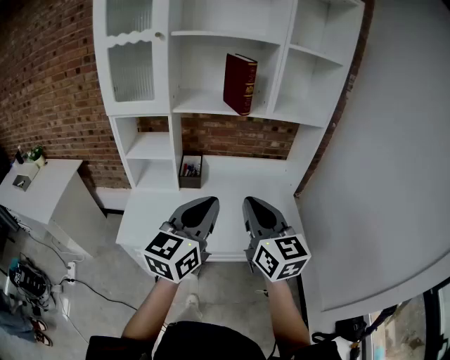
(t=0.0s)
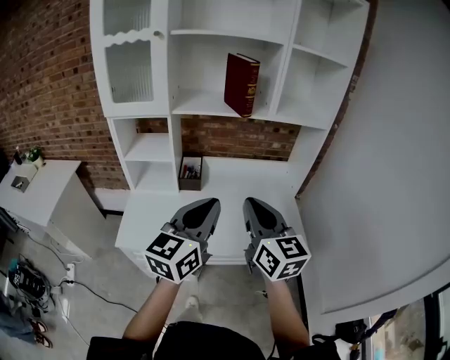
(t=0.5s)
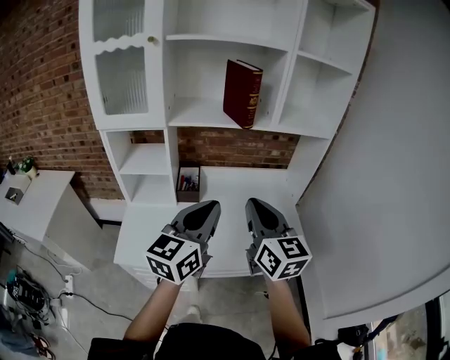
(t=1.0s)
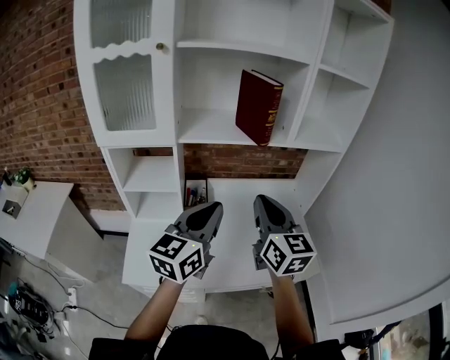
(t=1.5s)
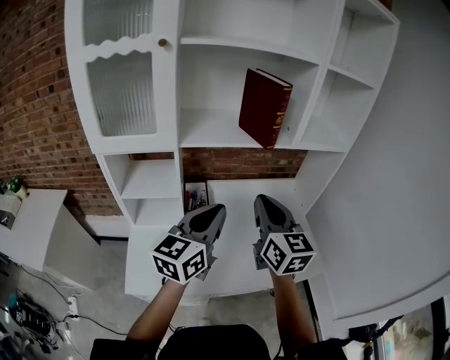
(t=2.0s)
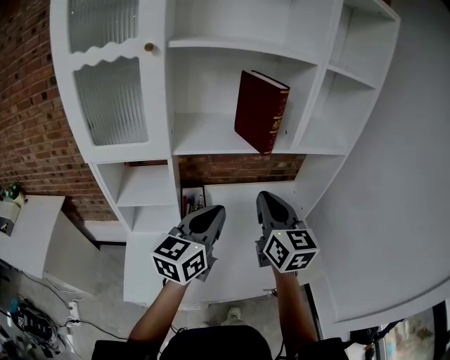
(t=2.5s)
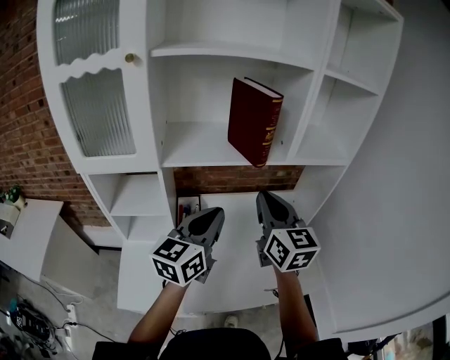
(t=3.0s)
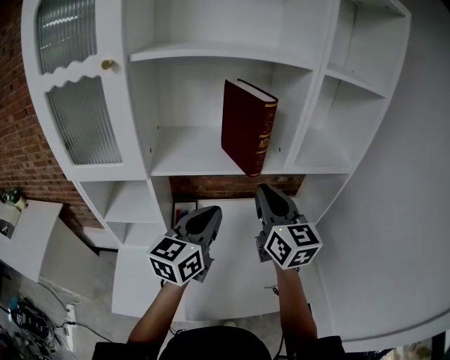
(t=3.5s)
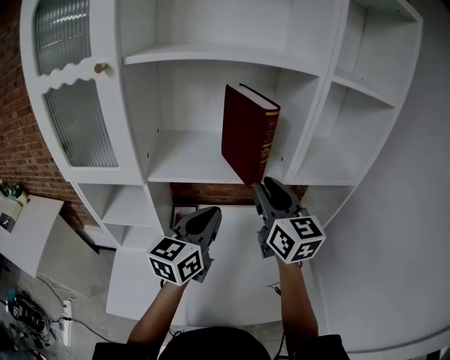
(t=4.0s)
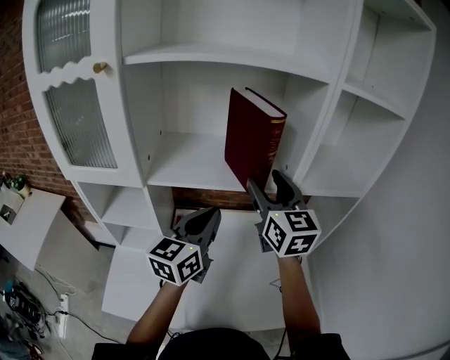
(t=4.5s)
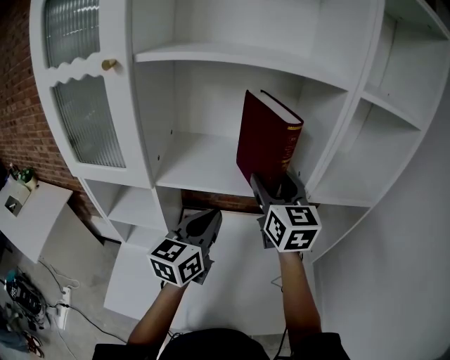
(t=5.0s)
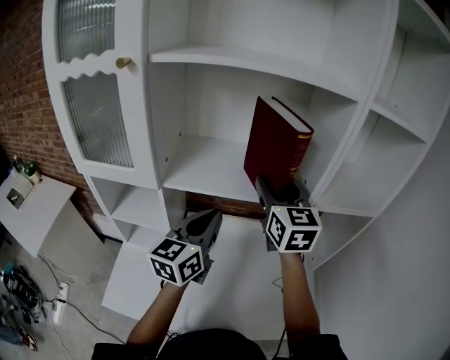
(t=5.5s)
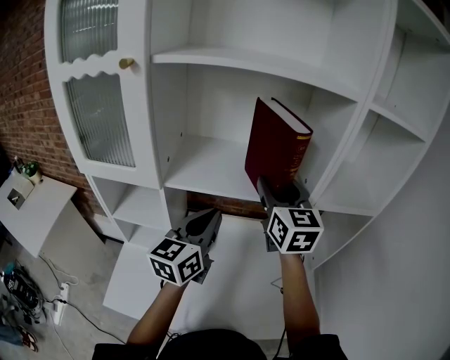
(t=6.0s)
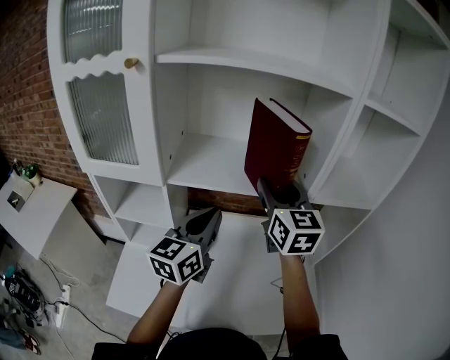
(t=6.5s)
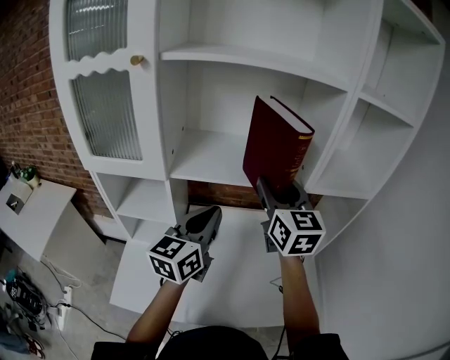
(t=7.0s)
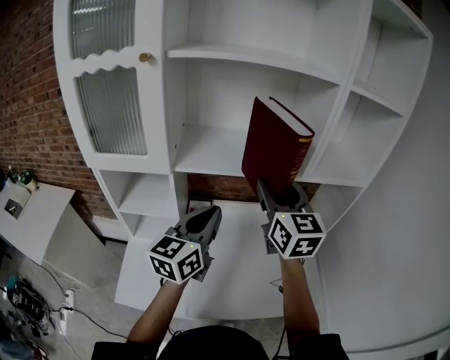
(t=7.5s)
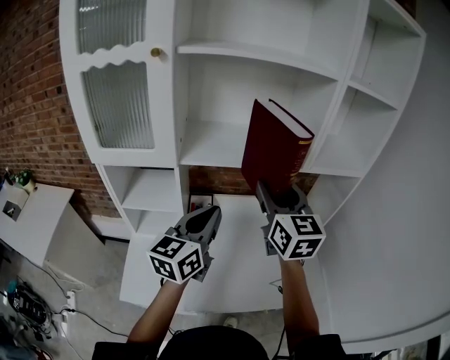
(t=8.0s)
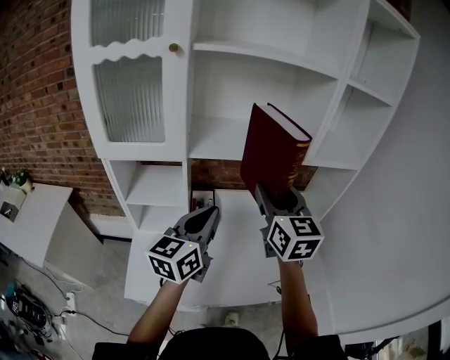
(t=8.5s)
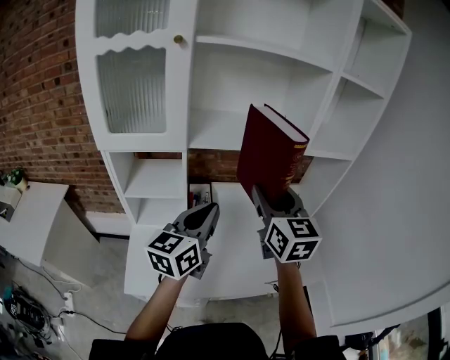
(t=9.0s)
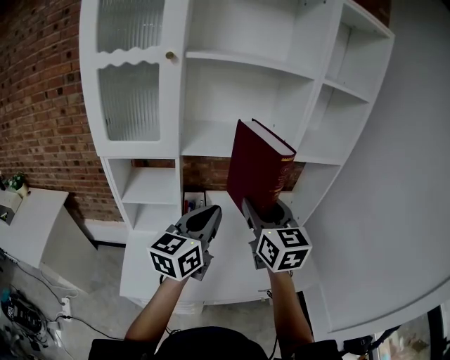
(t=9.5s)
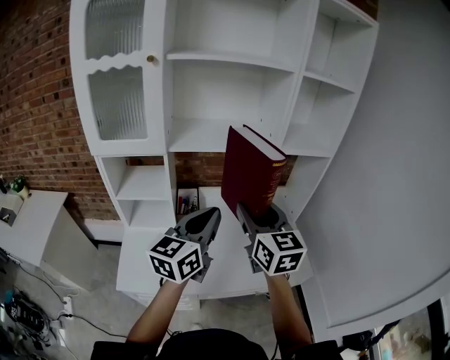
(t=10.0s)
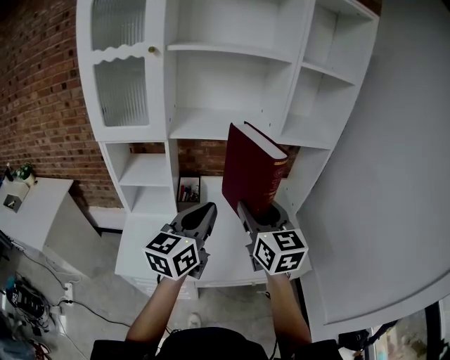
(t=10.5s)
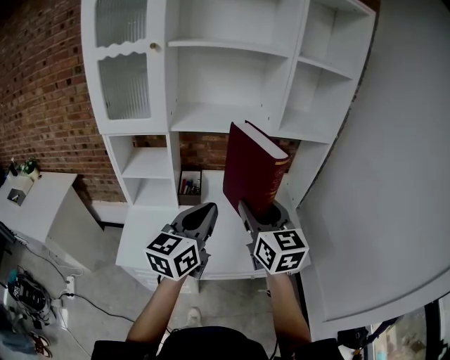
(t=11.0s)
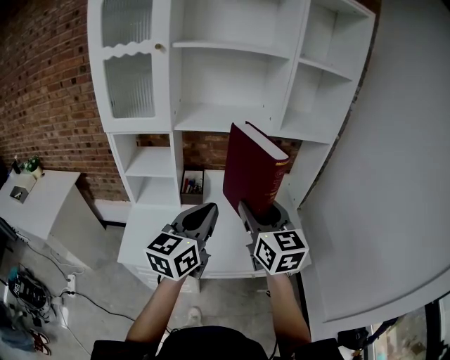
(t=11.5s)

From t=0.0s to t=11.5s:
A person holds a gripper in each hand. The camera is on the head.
From t=0.0s to t=2.0s: The two grippers go about 20 cm forward and to the left.
From t=2.0s to t=4.0s: Both grippers move forward, some 15 cm.
From t=4.0s to t=6.0s: The right gripper is displaced forward by about 5 cm, and opens, while the left gripper ends up about 5 cm from where it was.
From t=6.0s to t=7.5s: The two grippers go some 10 cm backward.
From t=7.5s to t=9.5s: The grippers both shift backward by about 15 cm.
From t=9.5s to t=11.5s: Both grippers travel together backward and to the right, about 15 cm.

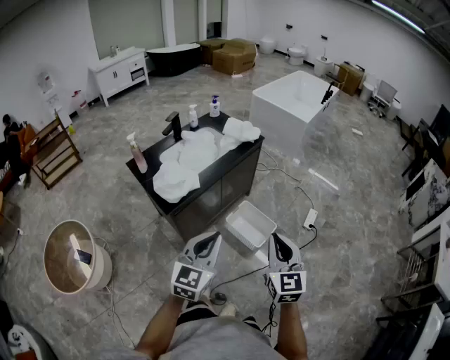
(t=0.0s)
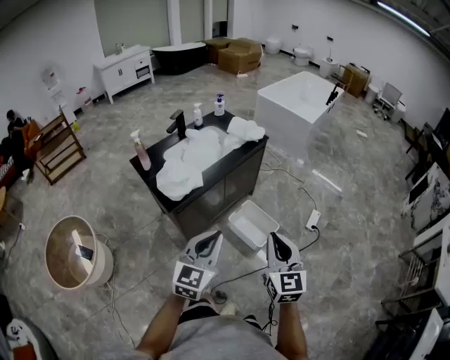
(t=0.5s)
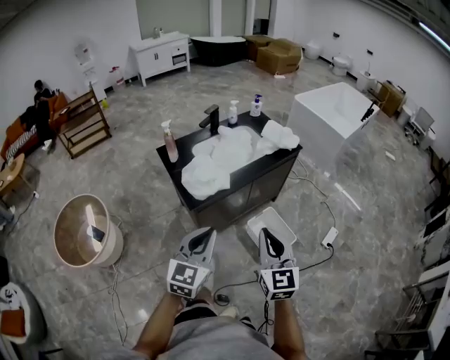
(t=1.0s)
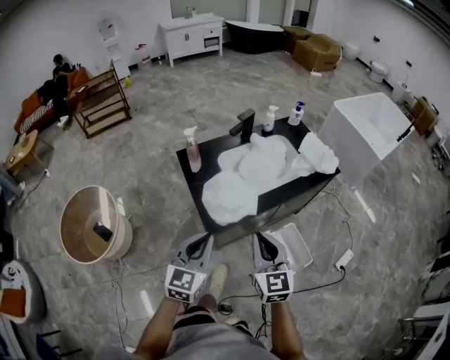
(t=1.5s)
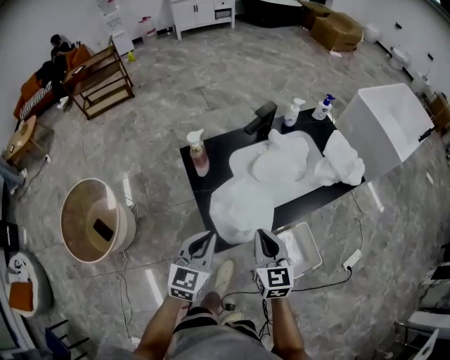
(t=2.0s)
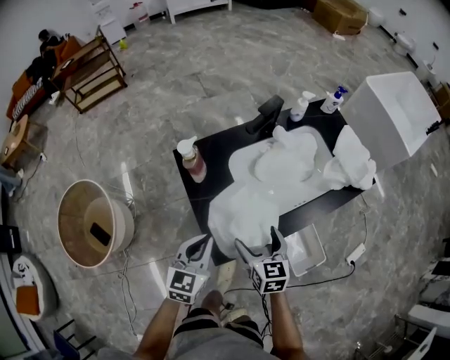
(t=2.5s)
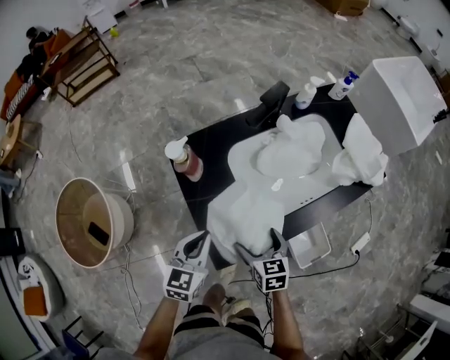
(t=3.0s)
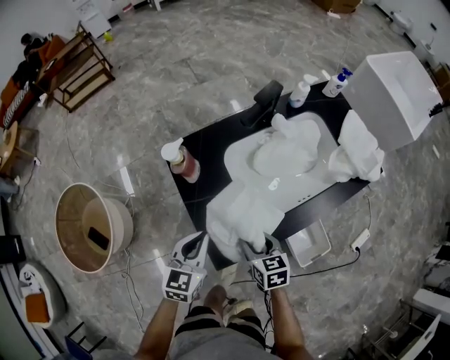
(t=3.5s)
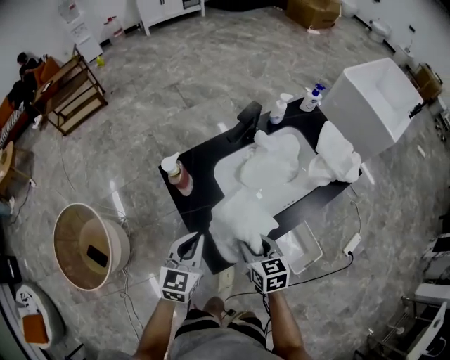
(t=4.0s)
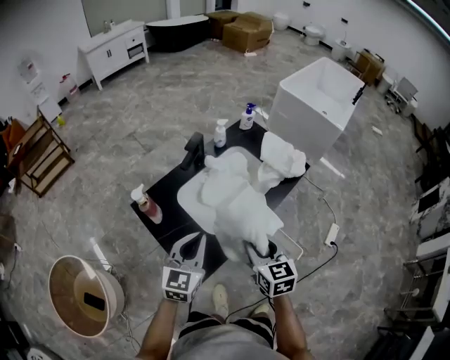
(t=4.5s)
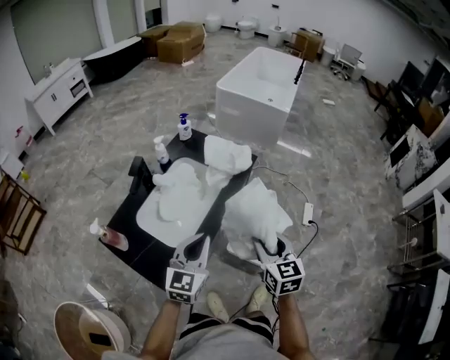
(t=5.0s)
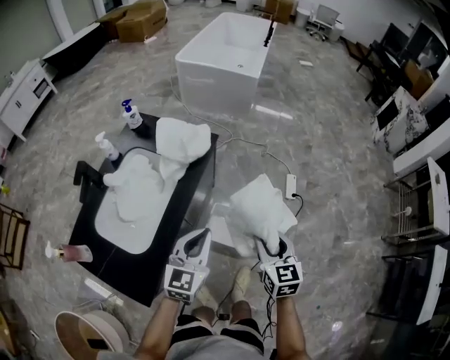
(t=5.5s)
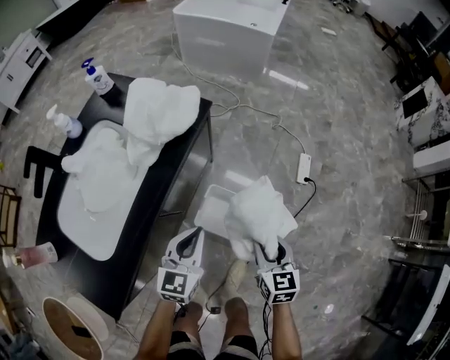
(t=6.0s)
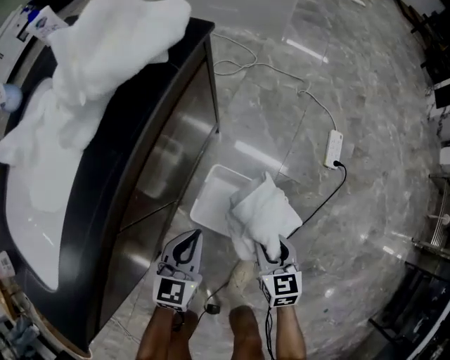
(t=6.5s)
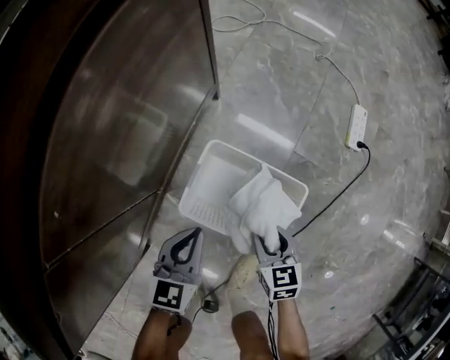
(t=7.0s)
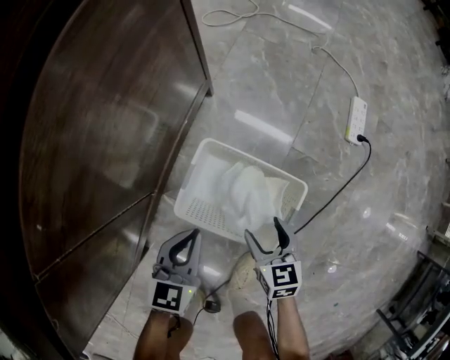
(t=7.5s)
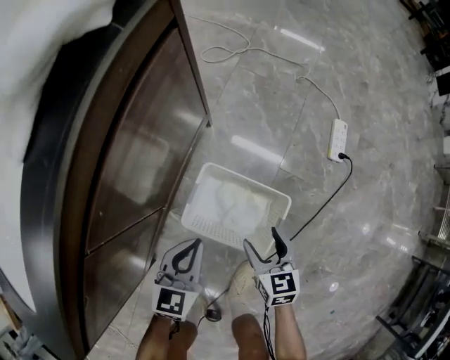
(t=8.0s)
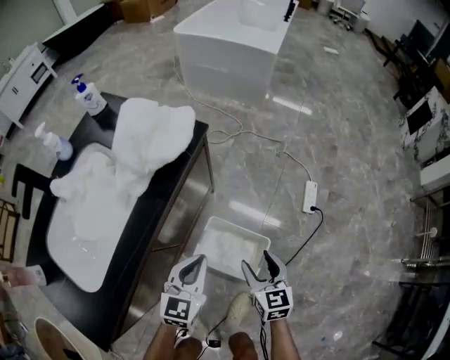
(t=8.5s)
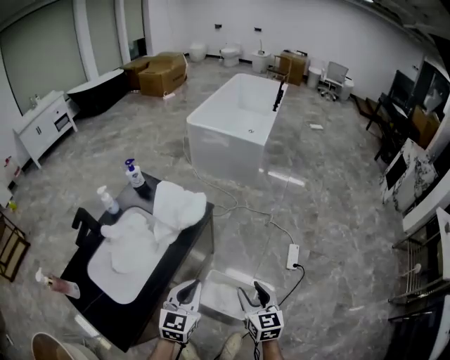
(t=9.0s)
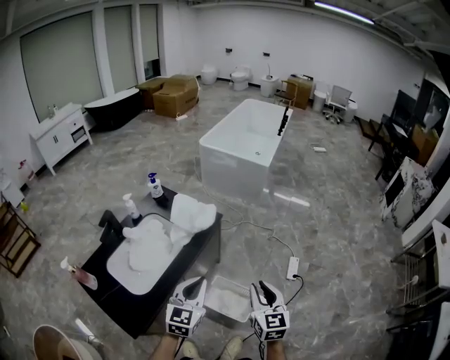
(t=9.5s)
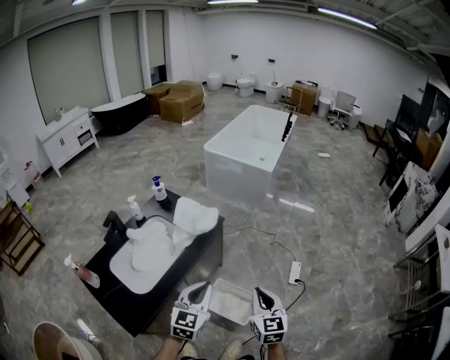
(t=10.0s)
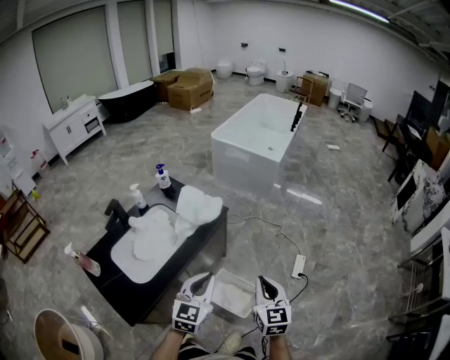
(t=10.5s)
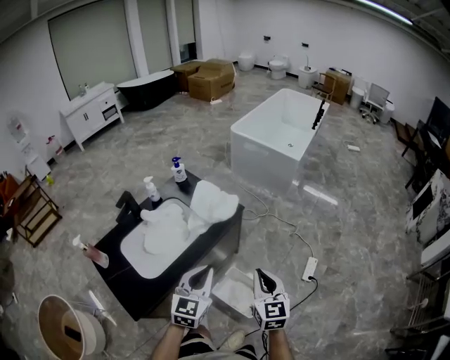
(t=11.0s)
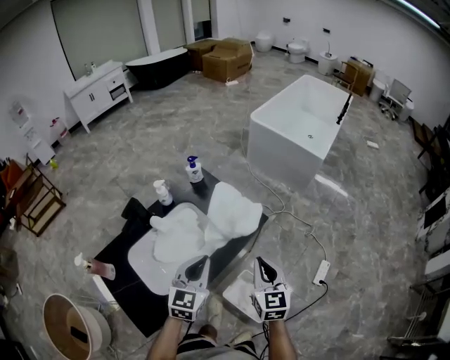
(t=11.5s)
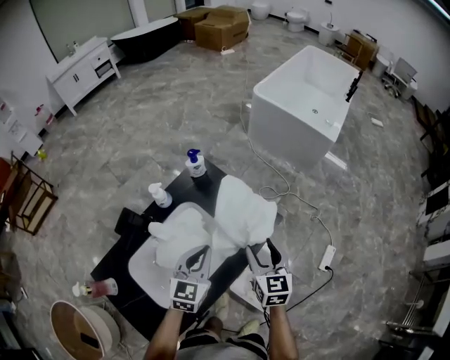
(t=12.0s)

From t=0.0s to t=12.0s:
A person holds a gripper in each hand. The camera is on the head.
From t=0.0s to t=2.0s: The pair of grippers is taken roughly 50 cm. The left gripper turns by some 30 degrees. Meanwhile the right gripper rotates approximately 30 degrees.
From t=2.0s to t=4.0s: The right gripper is displaced downward and forward by some 10 cm, turns by some 20 degrees, and opens, then closes once more, while the left gripper travels forward by some 10 cm.
From t=4.0s to t=6.0s: The two grippers travel together, some 50 cm. The right gripper swivels some 50 degrees; the left gripper changes its angle by some 40 degrees.
From t=6.0s to t=8.0s: The grippers both shift downward by about 35 cm.
From t=8.0s to t=10.0s: Both grippers travel together upward, approximately 70 cm. The left gripper turns by about 30 degrees. Meanwhile the right gripper rotates about 30 degrees, and closes its fingers.
From t=10.0s to t=12.0s: The two grippers go approximately 40 cm forward and to the left. The right gripper opens its fingers.

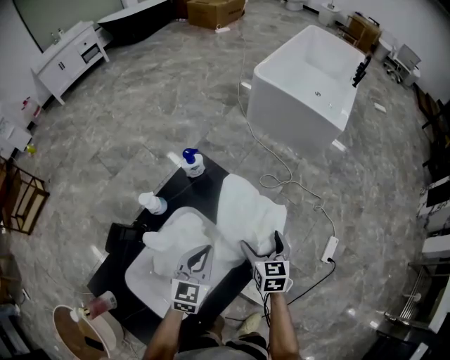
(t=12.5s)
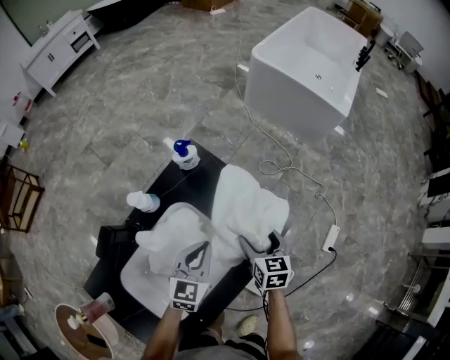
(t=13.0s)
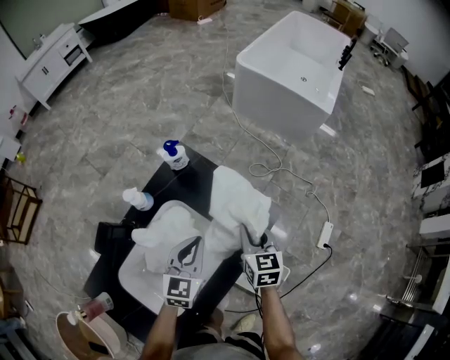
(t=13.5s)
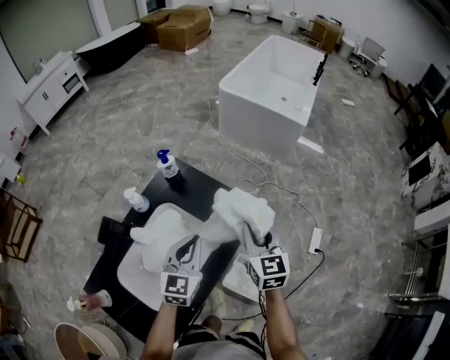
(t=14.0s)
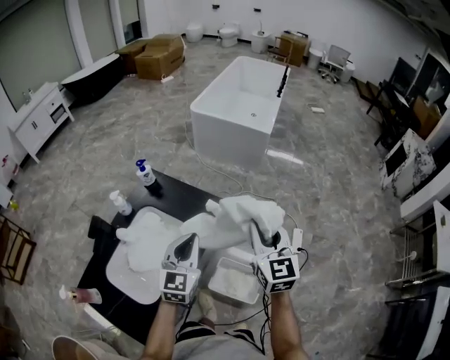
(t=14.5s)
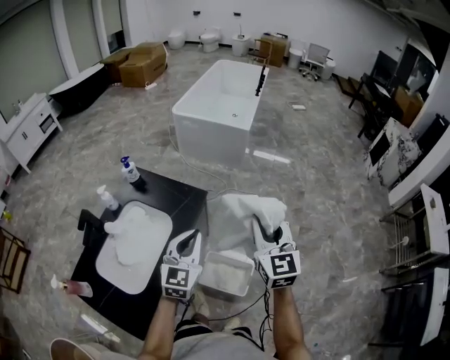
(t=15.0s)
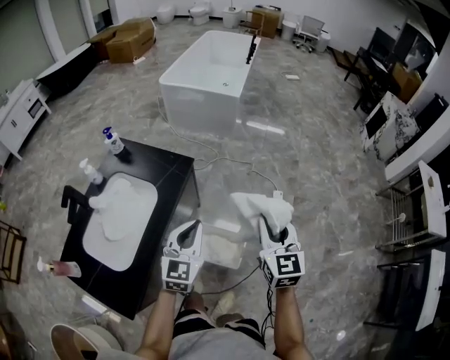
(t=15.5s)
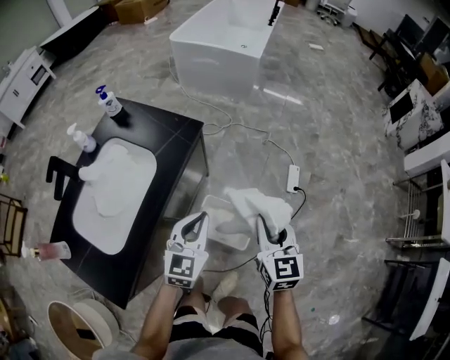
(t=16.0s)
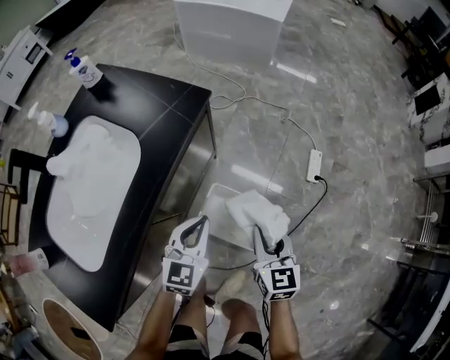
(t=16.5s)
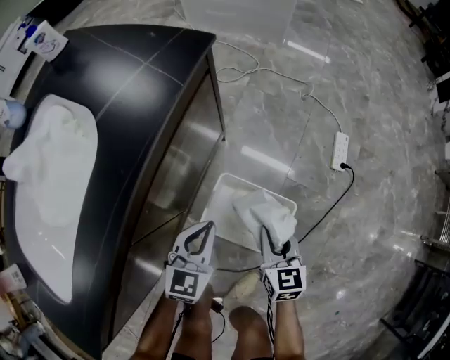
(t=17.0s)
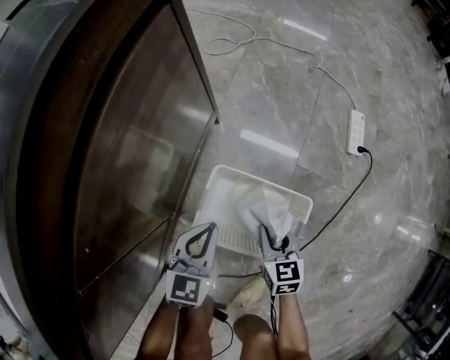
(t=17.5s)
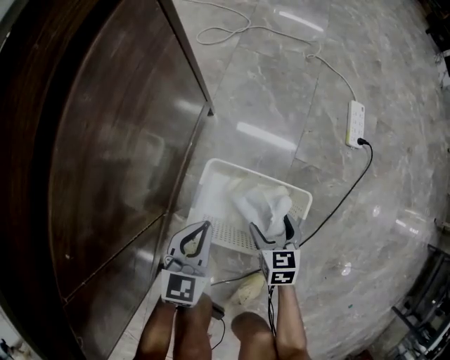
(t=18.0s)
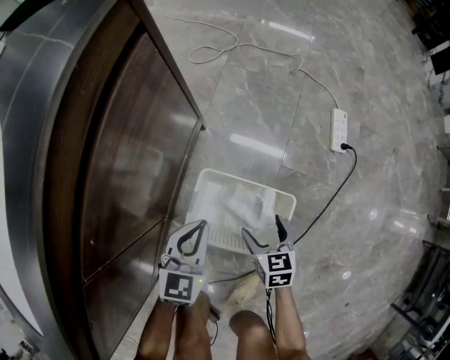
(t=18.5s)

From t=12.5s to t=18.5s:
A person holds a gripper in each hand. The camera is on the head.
From t=12.5s to t=14.5s: The two grippers go roughly 30 cm upward, to the right and backward. The right gripper rotates about 30 degrees, and closes its fingers.
From t=14.5s to t=16.5s: Both grippers travel together downward, roughly 40 cm. The right gripper turns by approximately 20 degrees.
From t=16.5s to t=18.5s: Both grippers travel together downward, approximately 35 cm. The right gripper rotates some 20 degrees, and opens up.
